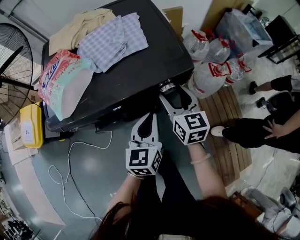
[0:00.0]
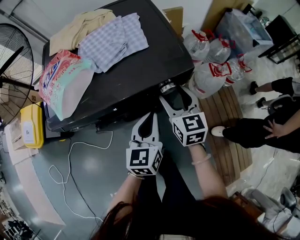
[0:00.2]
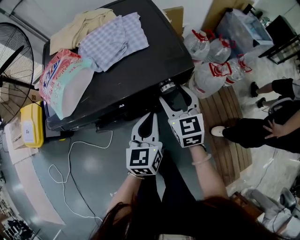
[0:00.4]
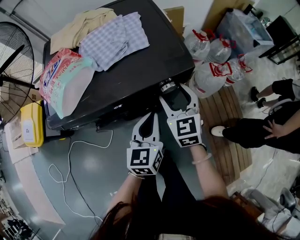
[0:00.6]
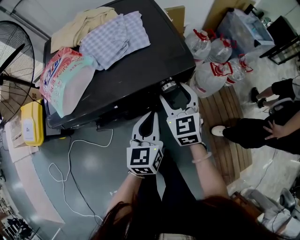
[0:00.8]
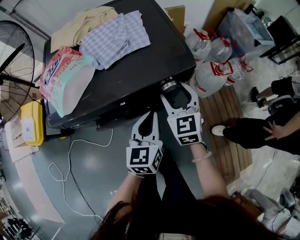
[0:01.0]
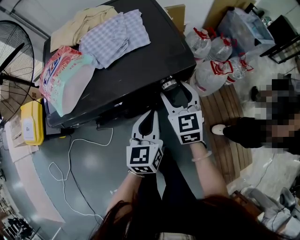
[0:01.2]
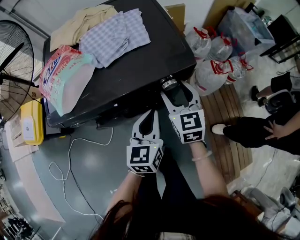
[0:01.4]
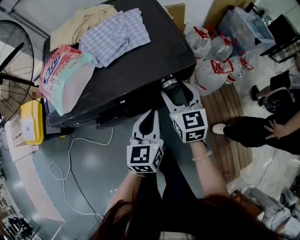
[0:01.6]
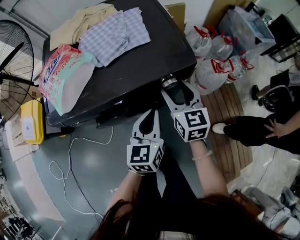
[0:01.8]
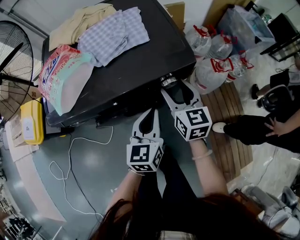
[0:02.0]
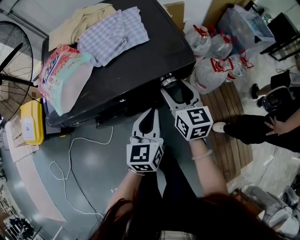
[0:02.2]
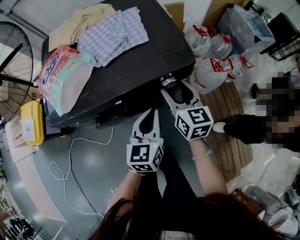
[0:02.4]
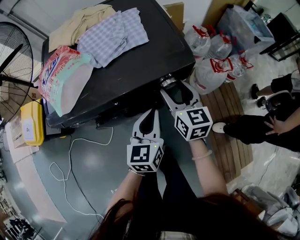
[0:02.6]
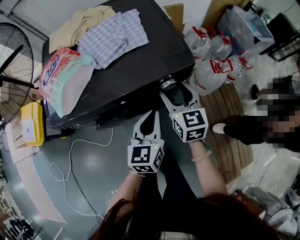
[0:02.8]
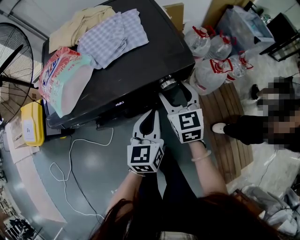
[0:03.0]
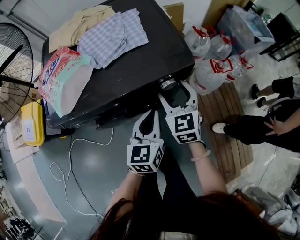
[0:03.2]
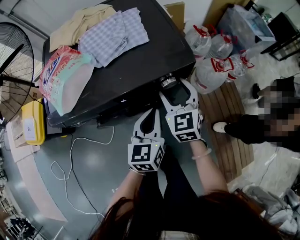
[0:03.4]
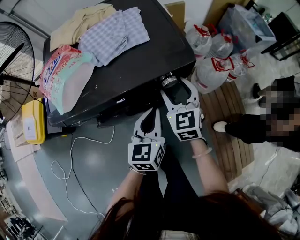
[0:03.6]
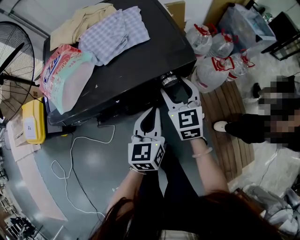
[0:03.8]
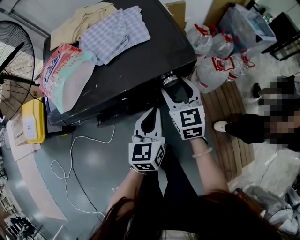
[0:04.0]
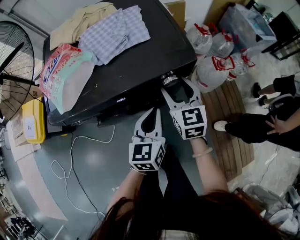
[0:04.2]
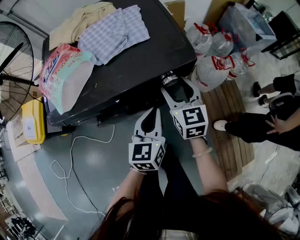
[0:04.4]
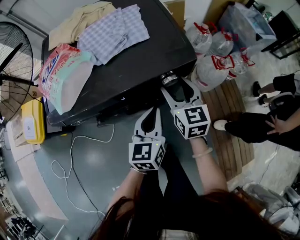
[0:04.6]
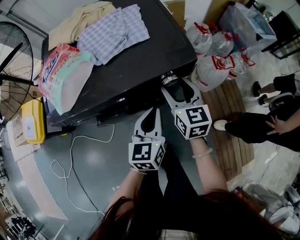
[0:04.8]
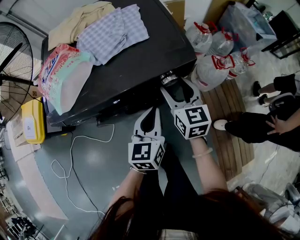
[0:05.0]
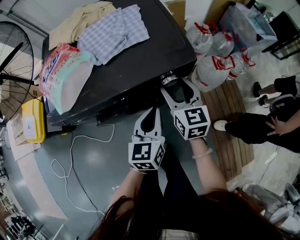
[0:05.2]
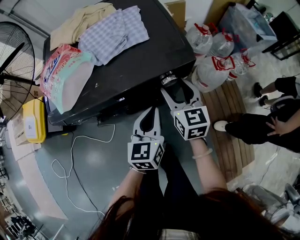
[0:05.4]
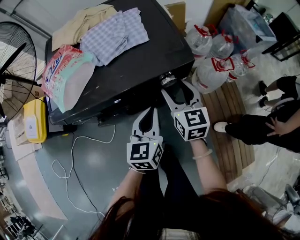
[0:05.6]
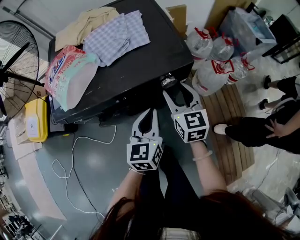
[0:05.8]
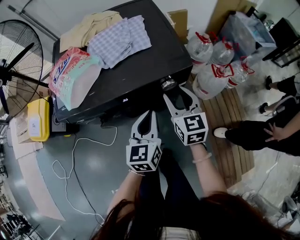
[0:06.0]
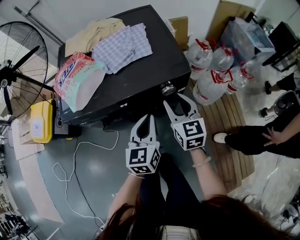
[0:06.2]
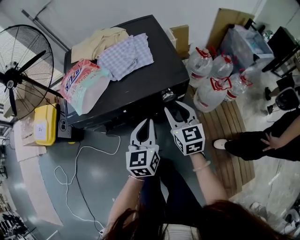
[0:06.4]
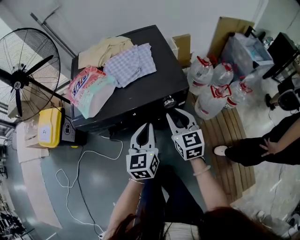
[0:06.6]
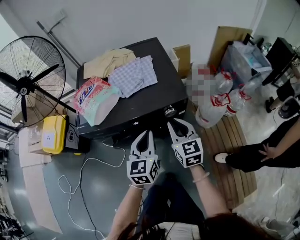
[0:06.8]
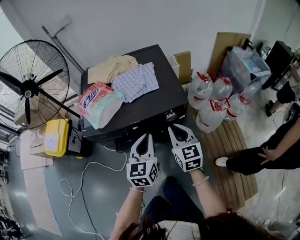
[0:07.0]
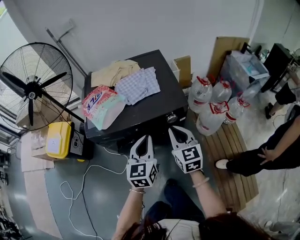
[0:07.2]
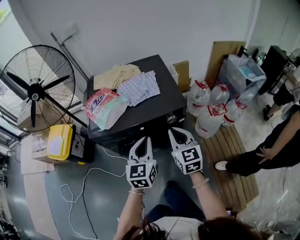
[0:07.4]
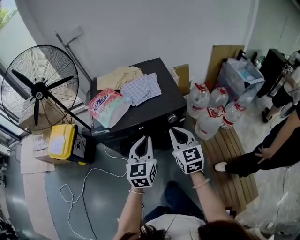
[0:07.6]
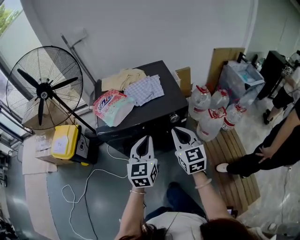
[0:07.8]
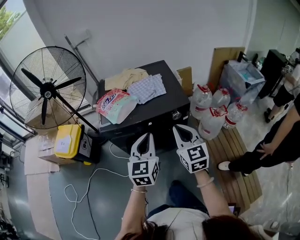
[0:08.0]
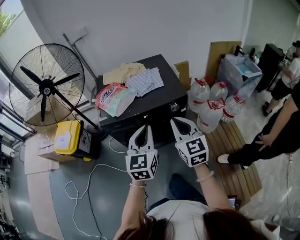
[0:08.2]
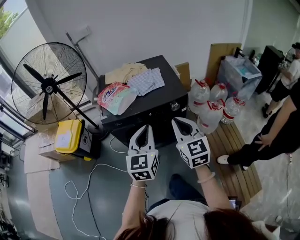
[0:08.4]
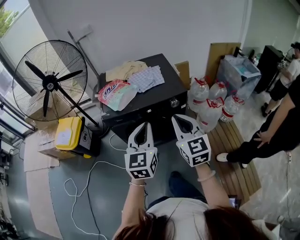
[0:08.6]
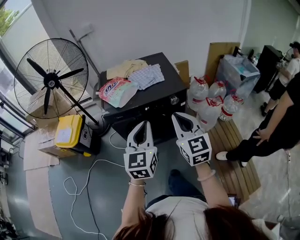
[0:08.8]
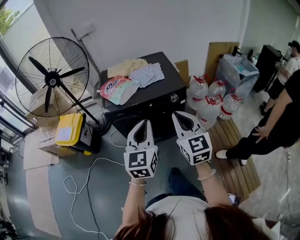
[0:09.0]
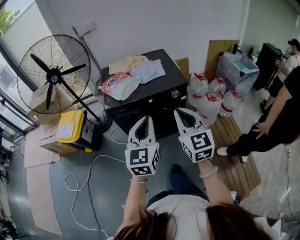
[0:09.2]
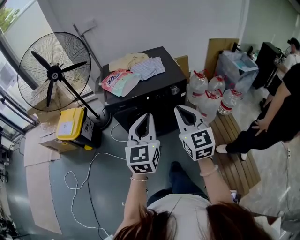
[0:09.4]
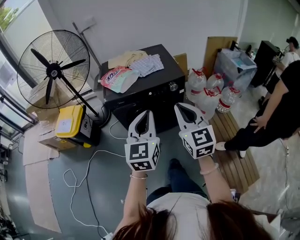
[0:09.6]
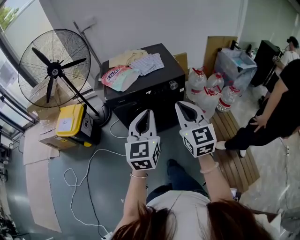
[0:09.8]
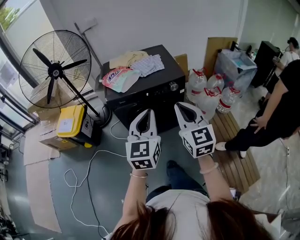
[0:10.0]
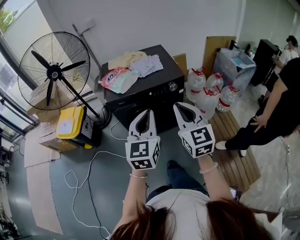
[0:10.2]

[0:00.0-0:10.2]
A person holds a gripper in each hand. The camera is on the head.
0:01.4 to 0:05.8: The grippers move only a little.
0:05.8 to 0:07.2: The left gripper heads upward, covering roughly 15 cm; the right gripper heads upward and backward, covering about 15 cm, and closes up.
0:07.2 to 0:08.8: The two grippers go some 25 cm backward and upward.
0:08.8 to 0:10.2: The grippers both shift backward by some 10 cm.

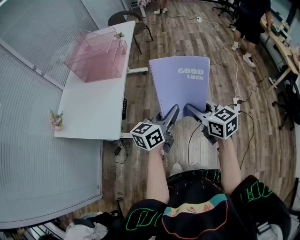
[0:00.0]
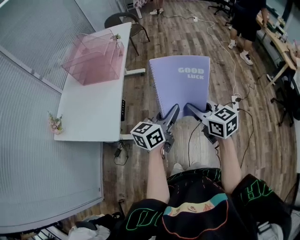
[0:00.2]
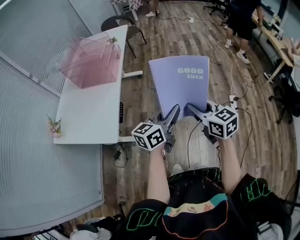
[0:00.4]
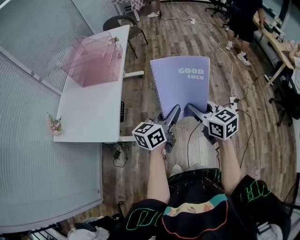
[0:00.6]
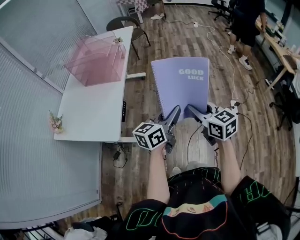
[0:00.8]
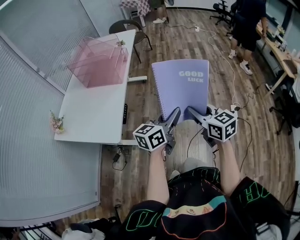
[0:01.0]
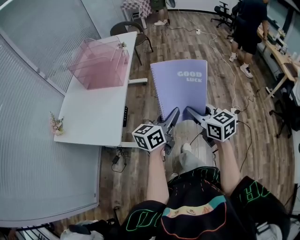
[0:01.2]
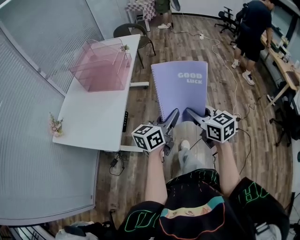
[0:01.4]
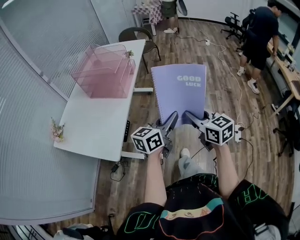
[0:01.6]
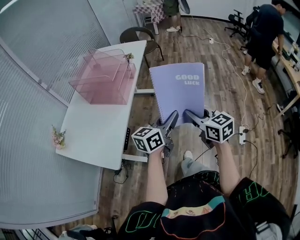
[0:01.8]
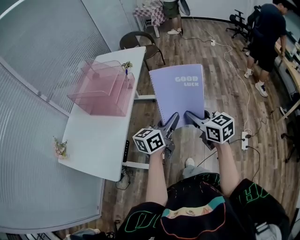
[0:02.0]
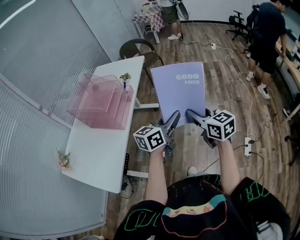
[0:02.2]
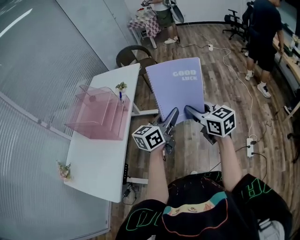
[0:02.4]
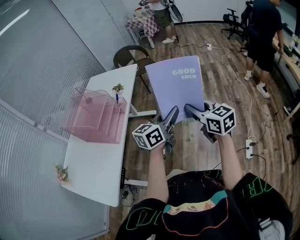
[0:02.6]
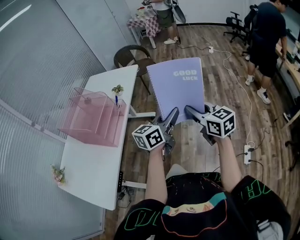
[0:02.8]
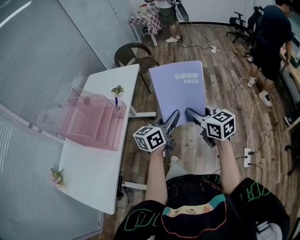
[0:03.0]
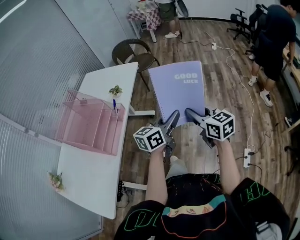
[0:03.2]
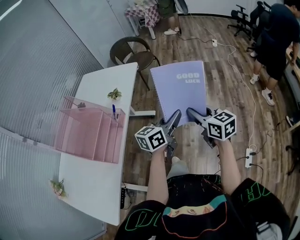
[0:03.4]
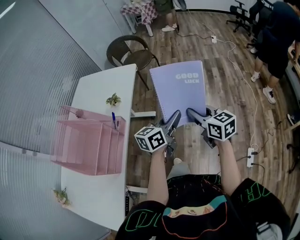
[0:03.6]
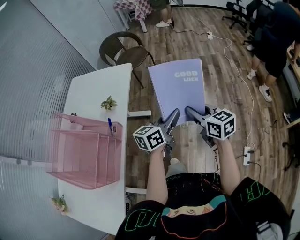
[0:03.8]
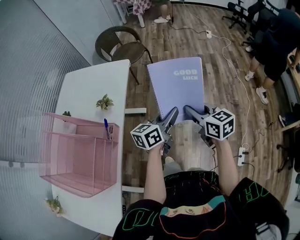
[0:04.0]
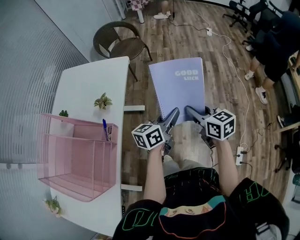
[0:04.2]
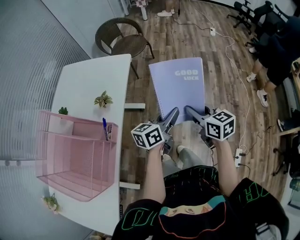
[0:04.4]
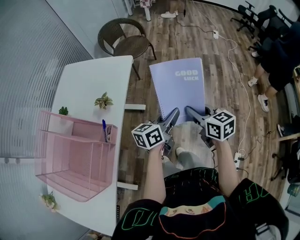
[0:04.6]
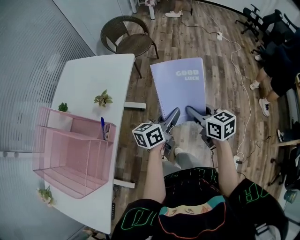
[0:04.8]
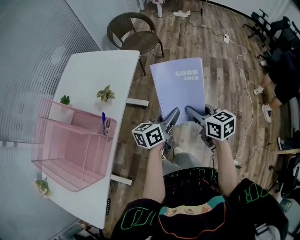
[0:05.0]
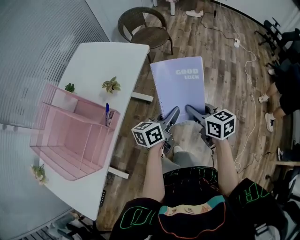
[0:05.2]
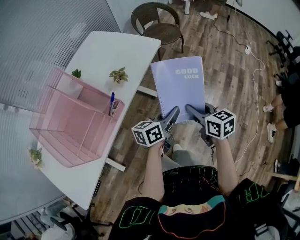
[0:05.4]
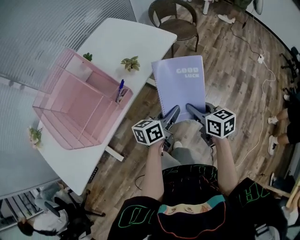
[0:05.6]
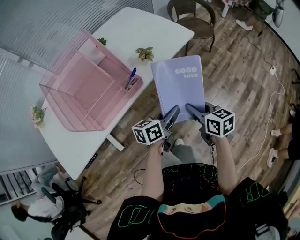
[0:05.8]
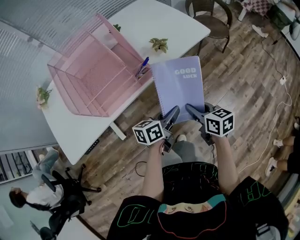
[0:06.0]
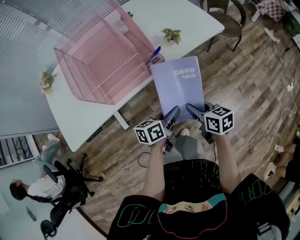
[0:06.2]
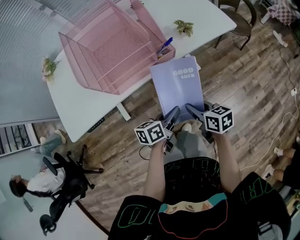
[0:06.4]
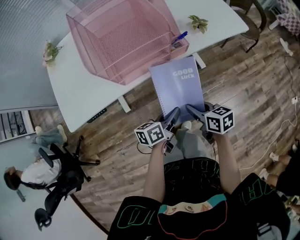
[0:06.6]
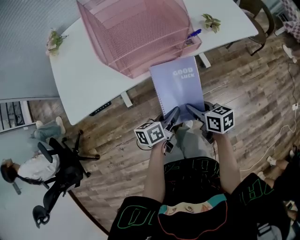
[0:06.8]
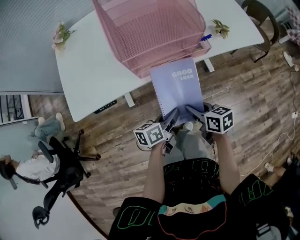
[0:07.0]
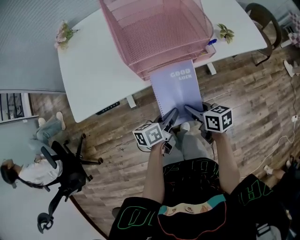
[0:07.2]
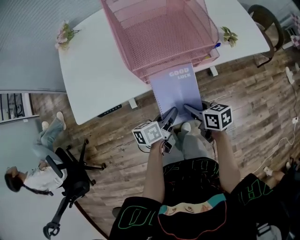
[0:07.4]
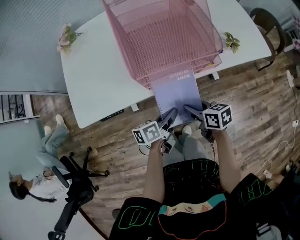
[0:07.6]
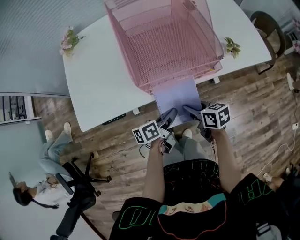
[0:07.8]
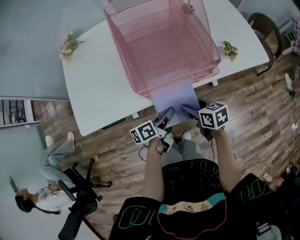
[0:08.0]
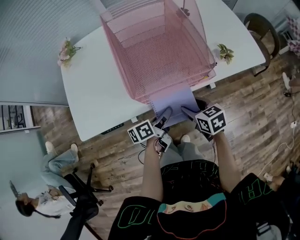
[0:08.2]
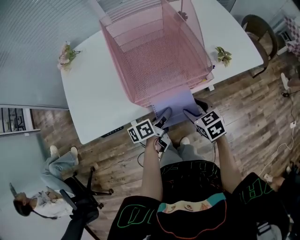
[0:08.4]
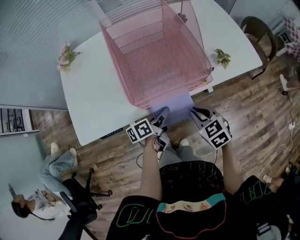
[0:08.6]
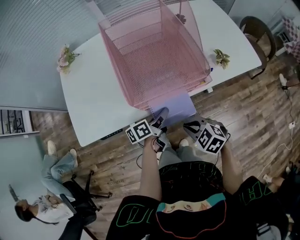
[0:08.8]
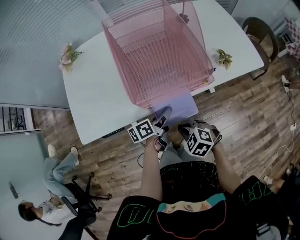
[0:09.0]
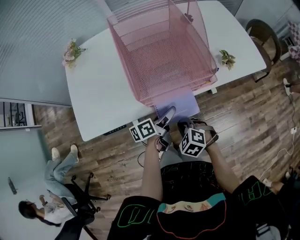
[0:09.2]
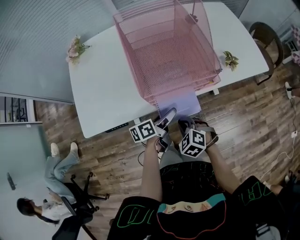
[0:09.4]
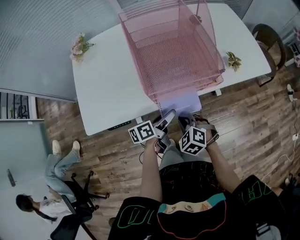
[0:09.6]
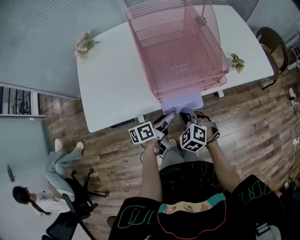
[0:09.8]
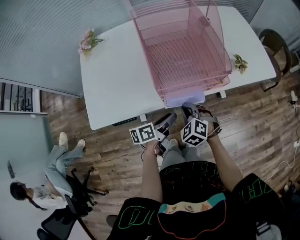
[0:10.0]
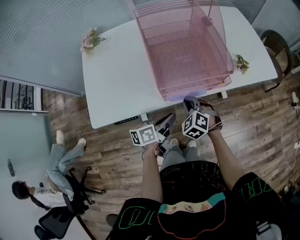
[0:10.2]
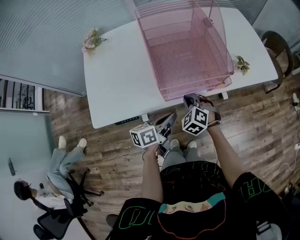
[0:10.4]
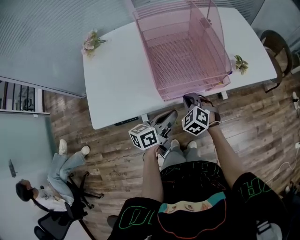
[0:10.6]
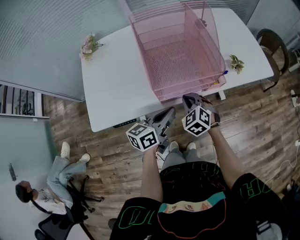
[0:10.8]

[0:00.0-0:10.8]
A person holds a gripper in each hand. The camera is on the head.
0:00.0 to 0:01.6: The two grippers go roughly 10 cm forward.
0:01.6 to 0:03.0: The two grippers go about 35 cm forward.
0:03.0 to 0:04.6: Both grippers travel together forward, about 30 cm.
0:04.6 to 0:06.2: The left gripper ends up about 20 cm from where it was, and swivels roughly 50 degrees. Meanwhile the right gripper changes place by approximately 20 cm, and turns by about 50 degrees.
0:06.2 to 0:07.8: The left gripper shifts some 20 cm to the left, and changes its angle by some 30 degrees, while the right gripper travels to the left and forward by some 20 cm, and swivels roughly 20 degrees.
0:07.8 to 0:09.2: The left gripper travels forward by roughly 5 cm, and opens. Meanwhile the right gripper ends up roughly 5 cm from where it was, twists approximately 60 degrees counterclockwise, seen from behind, and closes up.
0:09.2 to 0:10.8: The left gripper moves upward, approximately 10 cm, turns by about 30 degrees, and closes, while the right gripper shifts about 10 cm forward and upward, and changes its angle by some 20 degrees.

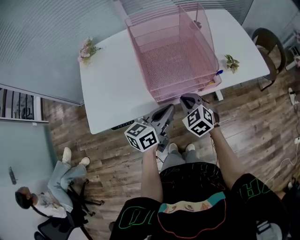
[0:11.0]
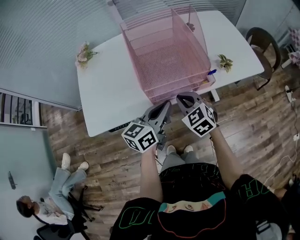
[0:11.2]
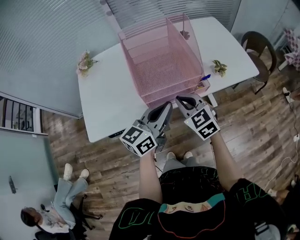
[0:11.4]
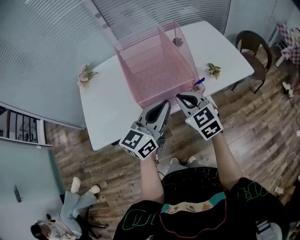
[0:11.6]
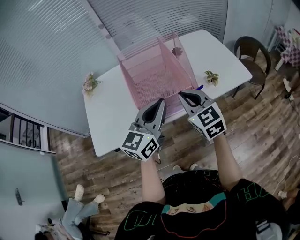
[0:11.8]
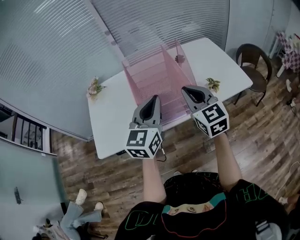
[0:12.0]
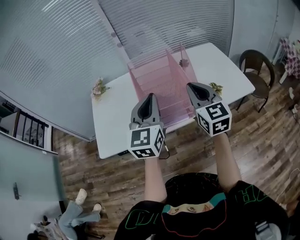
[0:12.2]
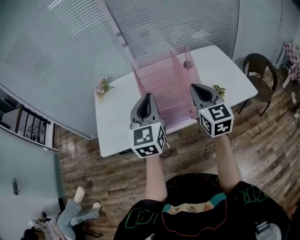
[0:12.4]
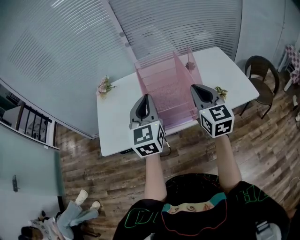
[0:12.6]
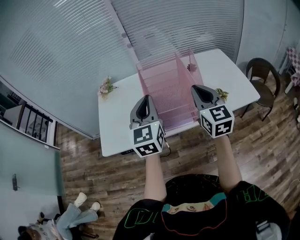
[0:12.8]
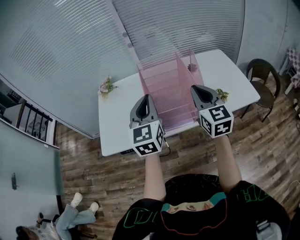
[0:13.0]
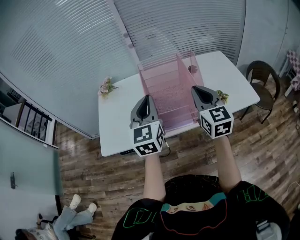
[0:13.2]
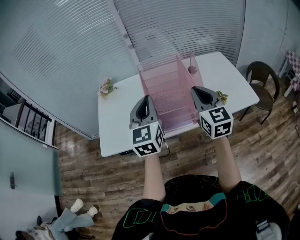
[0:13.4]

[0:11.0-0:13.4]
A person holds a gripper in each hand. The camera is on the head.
0:11.0 to 0:12.2: The two grippers go approximately 25 cm upward. The left gripper rotates about 50 degrees, while the right gripper points its fingers approximately 40 degrees further upward.
0:12.2 to 0:13.4: The left gripper ends up approximately 5 cm from where it was.
